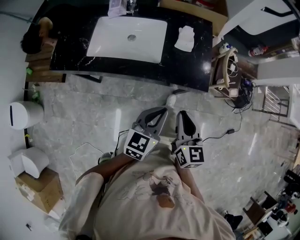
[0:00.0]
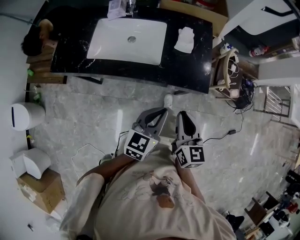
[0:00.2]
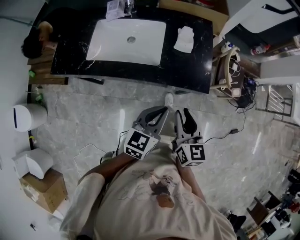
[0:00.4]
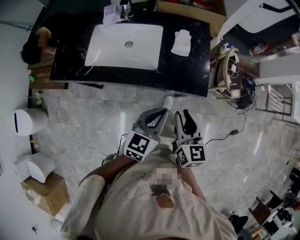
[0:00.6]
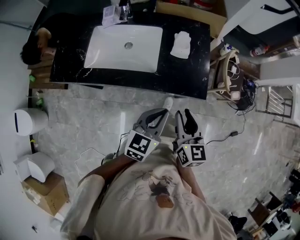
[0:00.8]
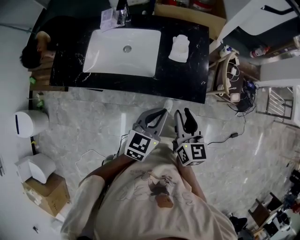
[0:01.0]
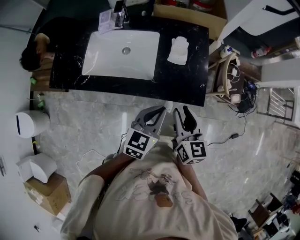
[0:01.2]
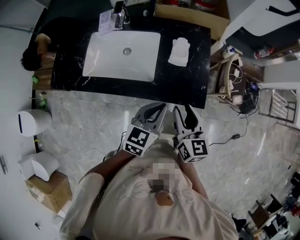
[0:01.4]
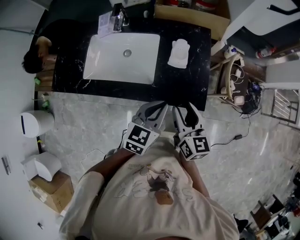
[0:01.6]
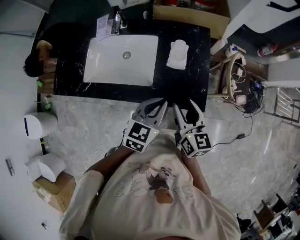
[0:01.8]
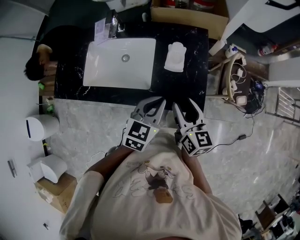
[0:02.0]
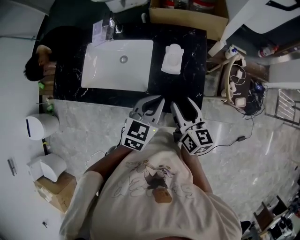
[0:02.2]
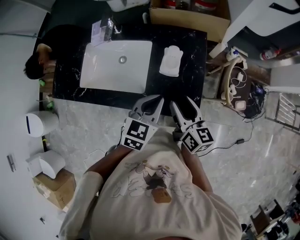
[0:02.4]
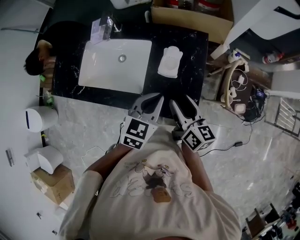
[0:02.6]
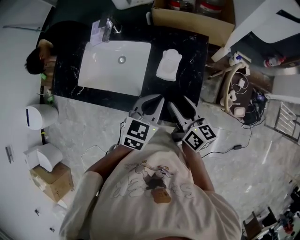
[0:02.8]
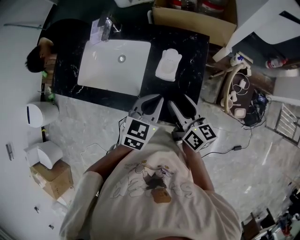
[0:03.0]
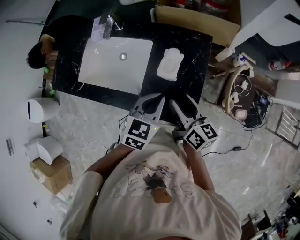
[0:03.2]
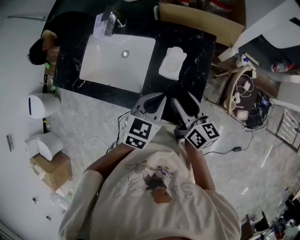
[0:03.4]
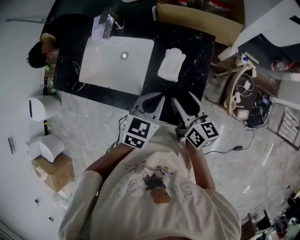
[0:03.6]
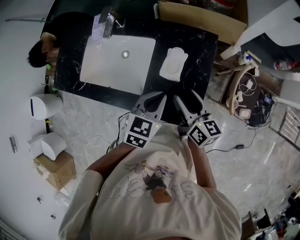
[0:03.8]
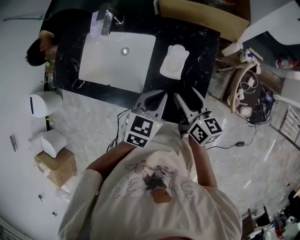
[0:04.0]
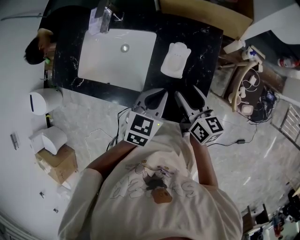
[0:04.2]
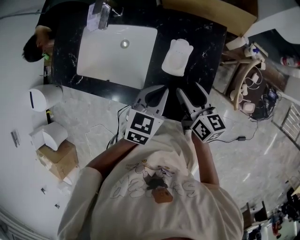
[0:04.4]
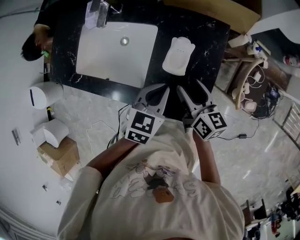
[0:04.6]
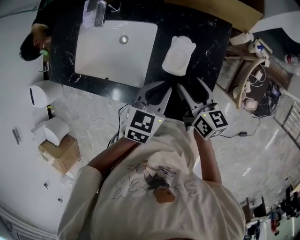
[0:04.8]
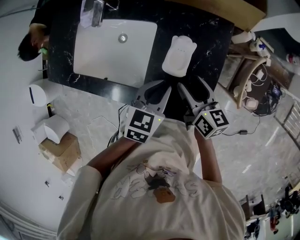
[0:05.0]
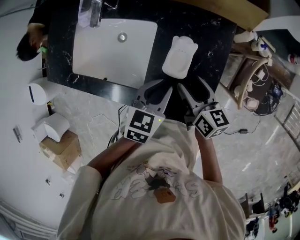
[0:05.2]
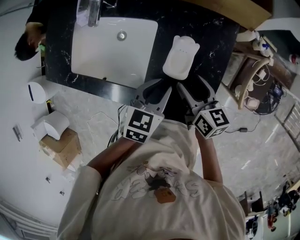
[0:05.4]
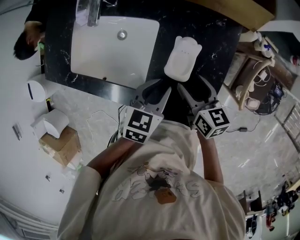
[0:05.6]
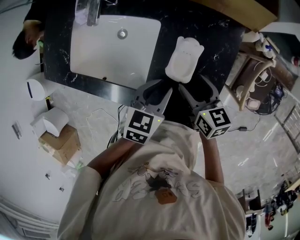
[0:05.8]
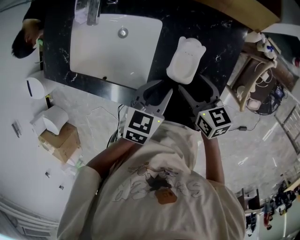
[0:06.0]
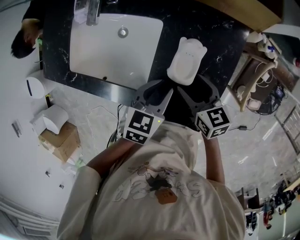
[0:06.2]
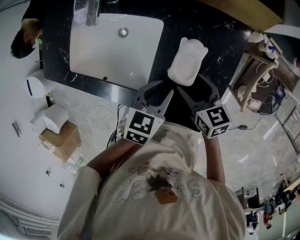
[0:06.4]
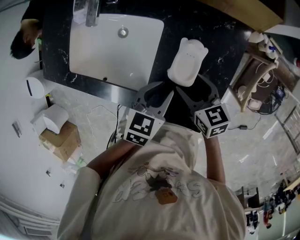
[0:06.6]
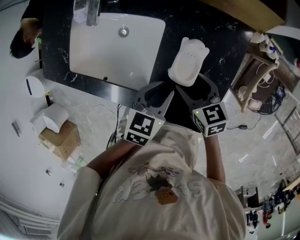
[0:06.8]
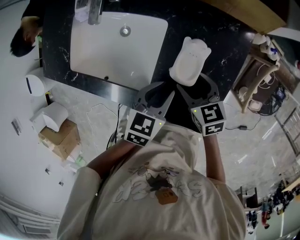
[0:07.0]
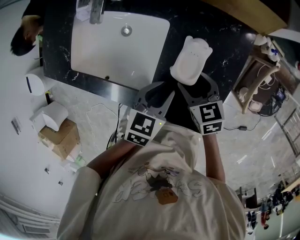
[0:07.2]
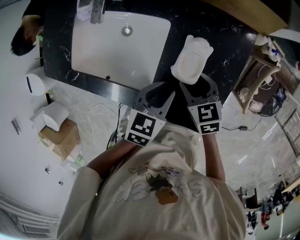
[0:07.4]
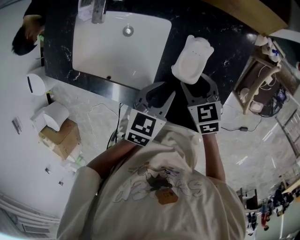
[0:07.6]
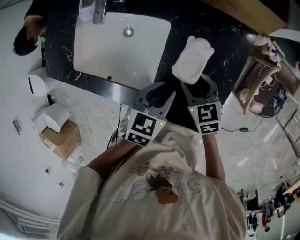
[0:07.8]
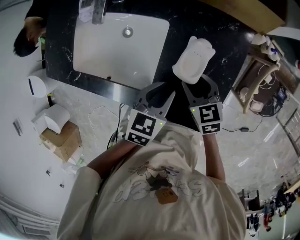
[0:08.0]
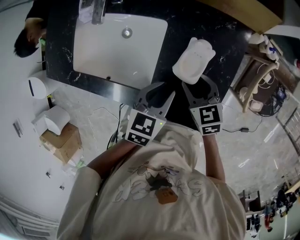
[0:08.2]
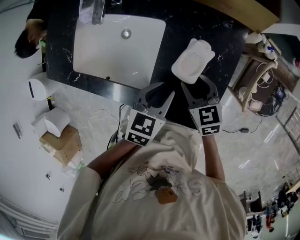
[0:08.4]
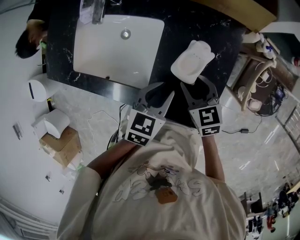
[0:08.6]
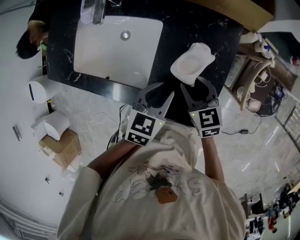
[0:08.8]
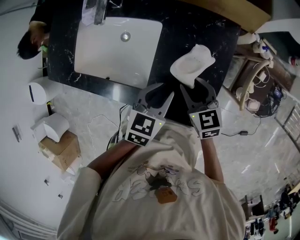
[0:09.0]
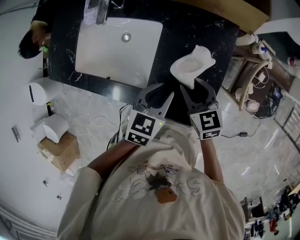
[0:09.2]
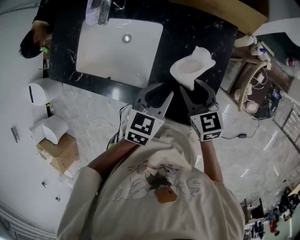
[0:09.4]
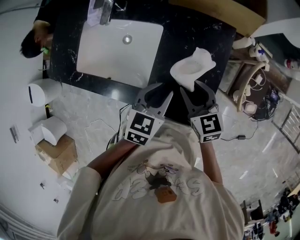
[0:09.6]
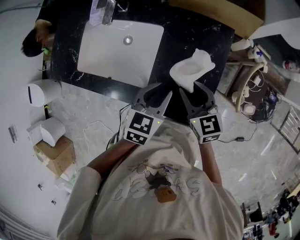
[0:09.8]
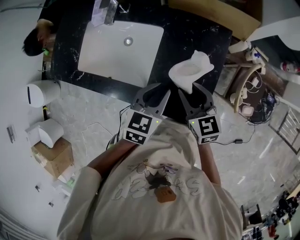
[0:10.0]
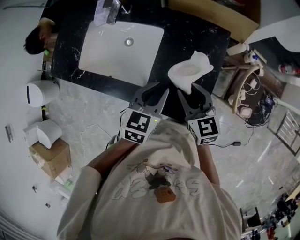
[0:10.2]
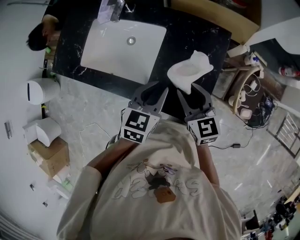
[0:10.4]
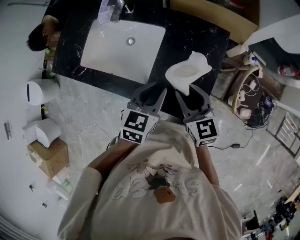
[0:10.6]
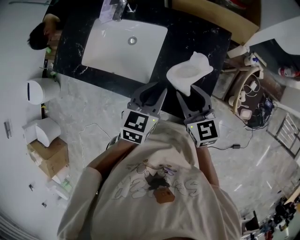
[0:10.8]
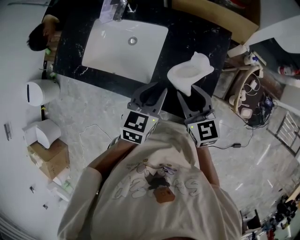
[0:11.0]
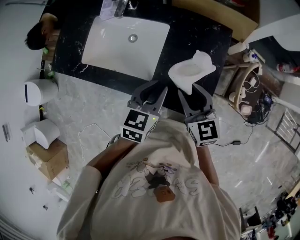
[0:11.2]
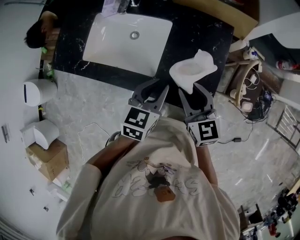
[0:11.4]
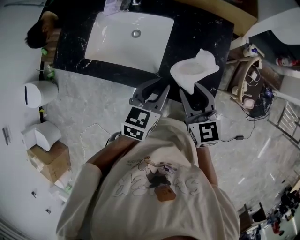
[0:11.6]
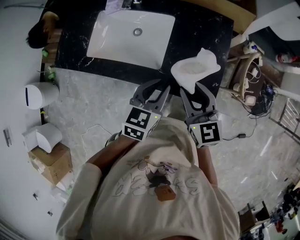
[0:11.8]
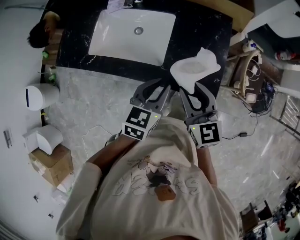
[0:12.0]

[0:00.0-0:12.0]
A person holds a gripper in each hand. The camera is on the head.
0:00.0 to 0:01.6: Both grippers move forward, approximately 15 cm. The right gripper opens its fingers.
0:01.6 to 0:03.0: The two grippers go roughly 15 cm forward and to the right. The right gripper changes its angle by roughly 30 degrees.
0:03.0 to 0:04.4: The left gripper changes place by about 5 cm; the right gripper is displaced forward and downward by about 10 cm.
0:04.4 to 0:06.0: The two grippers go some 5 cm downward. The right gripper changes its angle by roughly 20 degrees.
0:06.0 to 0:07.6: The right gripper swivels roughly 20 degrees.
0:07.6 to 0:09.0: The left gripper ends up about 5 cm from where it was, while the right gripper heads upward, covering some 5 cm.
0:09.0 to 0:10.4: The right gripper moves upward and backward, roughly 10 cm. The left gripper moves upward, some 5 cm.
0:10.4 to 0:12.0: The left gripper goes about 15 cm backward and to the left; the right gripper is displaced backward, to the left and upward by some 15 cm.

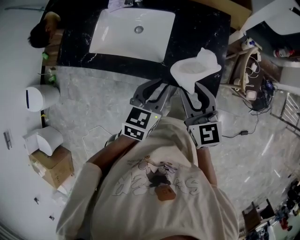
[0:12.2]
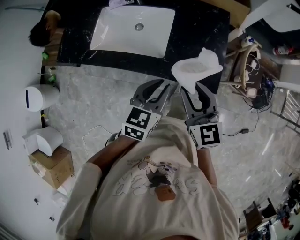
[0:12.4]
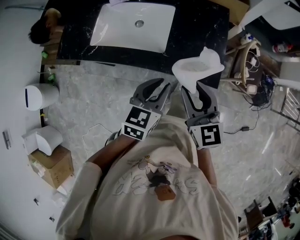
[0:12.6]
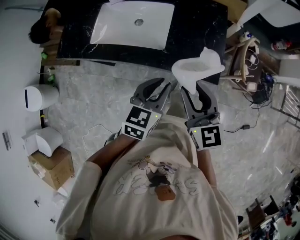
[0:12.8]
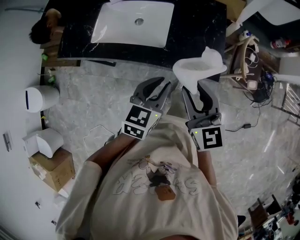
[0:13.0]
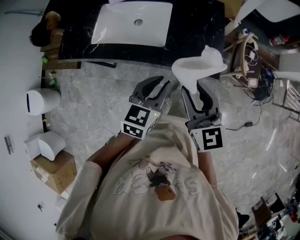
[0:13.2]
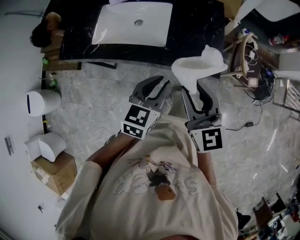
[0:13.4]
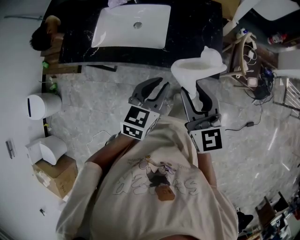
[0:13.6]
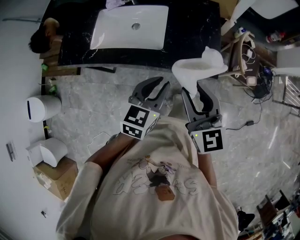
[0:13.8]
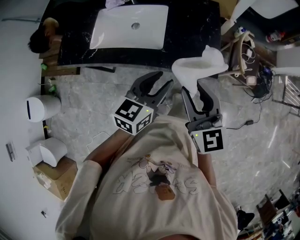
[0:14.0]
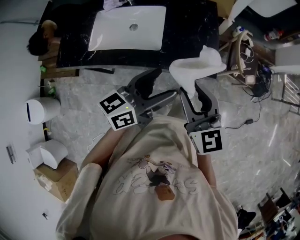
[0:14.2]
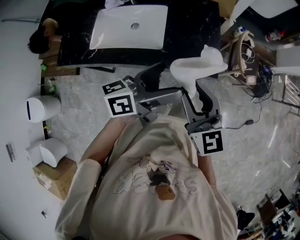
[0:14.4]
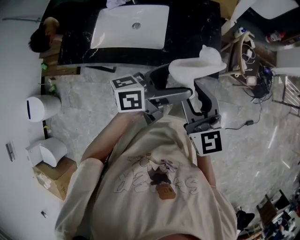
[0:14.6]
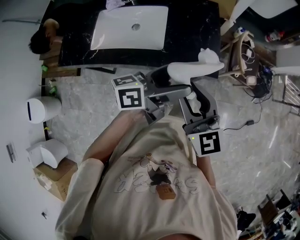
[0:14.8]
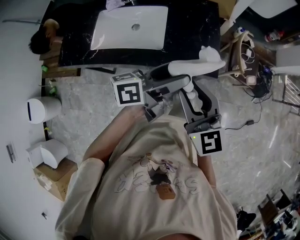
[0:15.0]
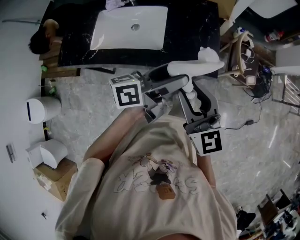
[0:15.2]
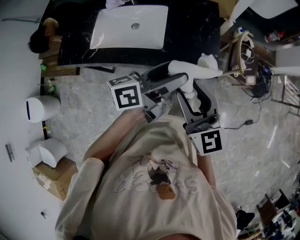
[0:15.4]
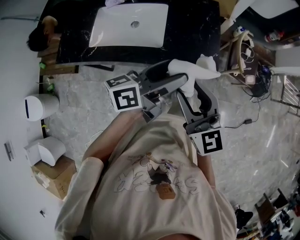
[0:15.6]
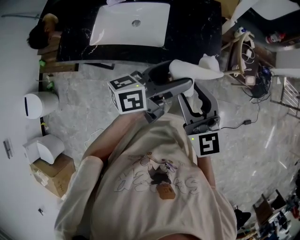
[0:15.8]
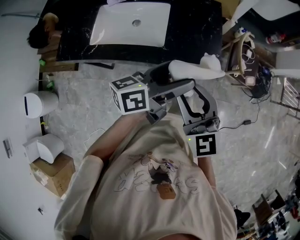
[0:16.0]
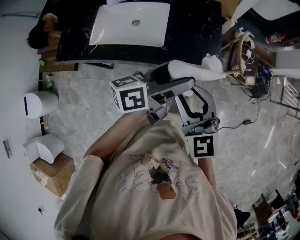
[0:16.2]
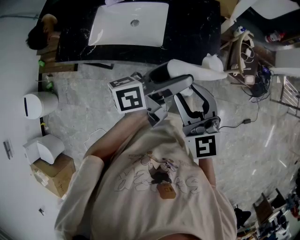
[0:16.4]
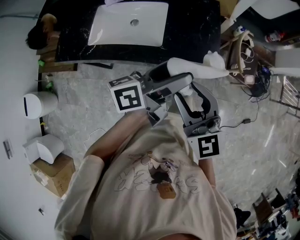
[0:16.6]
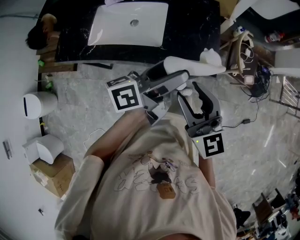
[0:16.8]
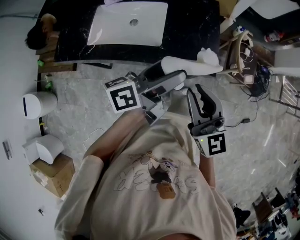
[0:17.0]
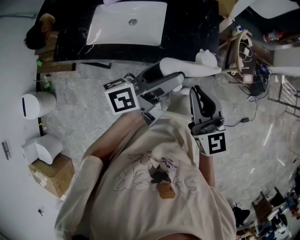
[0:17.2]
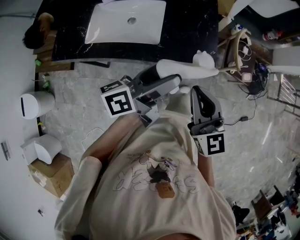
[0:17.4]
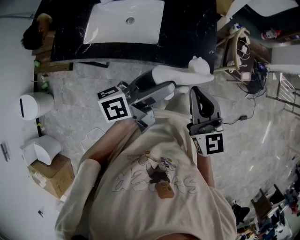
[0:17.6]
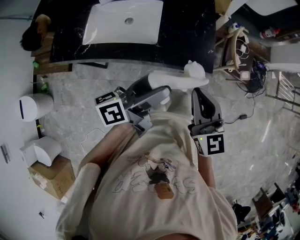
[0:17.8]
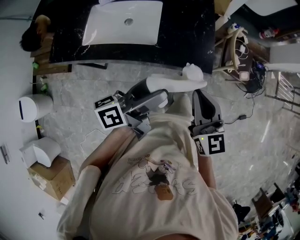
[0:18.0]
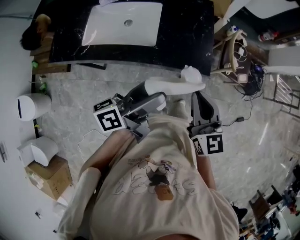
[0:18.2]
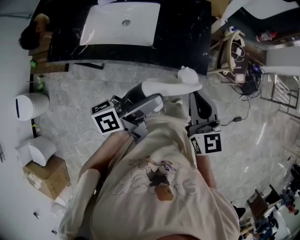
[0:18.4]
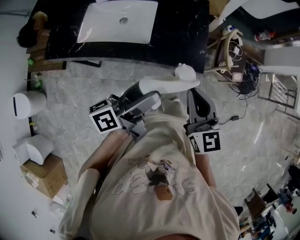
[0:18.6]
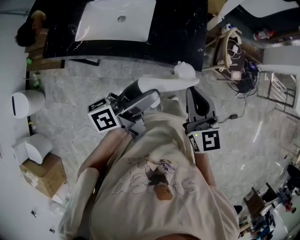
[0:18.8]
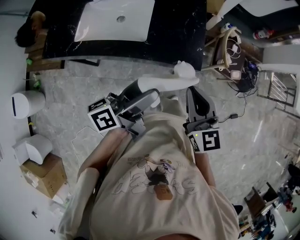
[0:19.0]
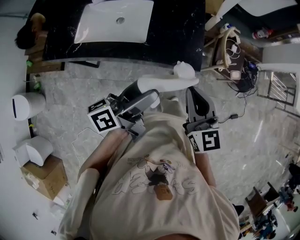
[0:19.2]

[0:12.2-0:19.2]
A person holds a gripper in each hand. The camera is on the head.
0:12.2 to 0:13.6: Both grippers travel together backward, roughly 10 cm.
0:13.6 to 0:15.0: The left gripper is displaced upward by about 5 cm, rotates roughly 60 degrees, and opens up.
0:15.0 to 0:16.4: The grippers make only small movements.
0:16.4 to 0:17.8: The left gripper heads backward, covering about 5 cm. Meanwhile the right gripper travels to the right by approximately 5 cm, and closes.
0:17.8 to 0:19.2: There are only small adjustments of the grippers.

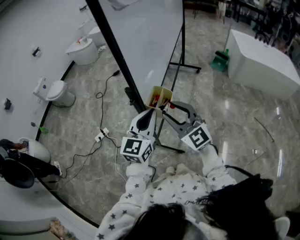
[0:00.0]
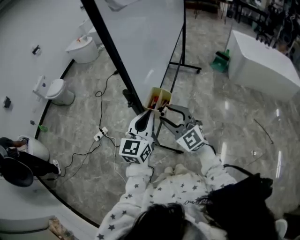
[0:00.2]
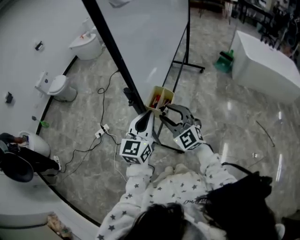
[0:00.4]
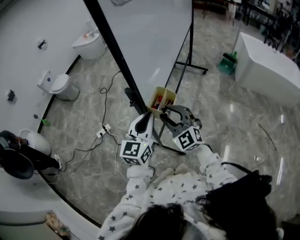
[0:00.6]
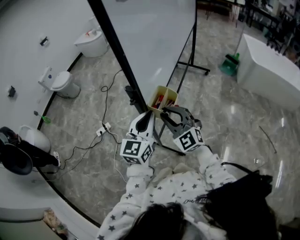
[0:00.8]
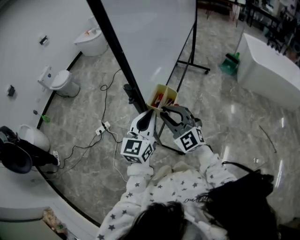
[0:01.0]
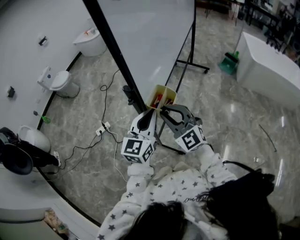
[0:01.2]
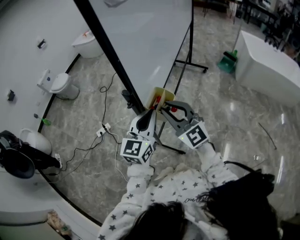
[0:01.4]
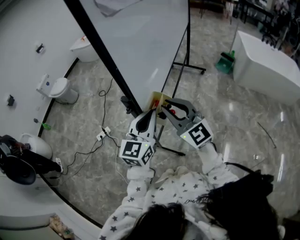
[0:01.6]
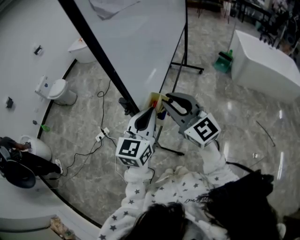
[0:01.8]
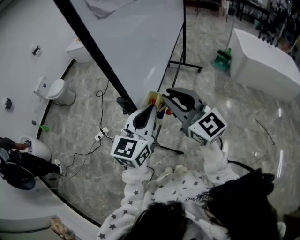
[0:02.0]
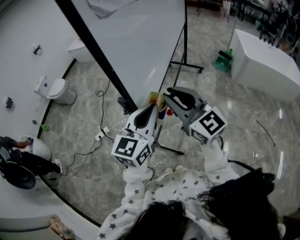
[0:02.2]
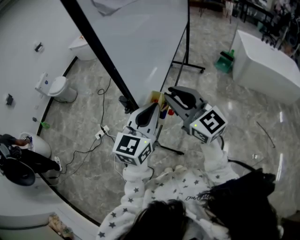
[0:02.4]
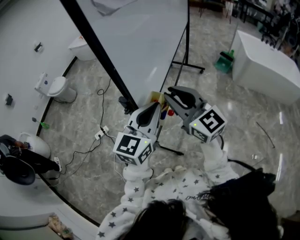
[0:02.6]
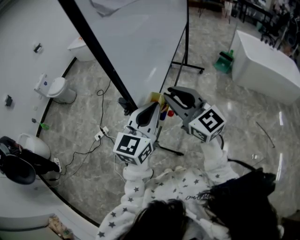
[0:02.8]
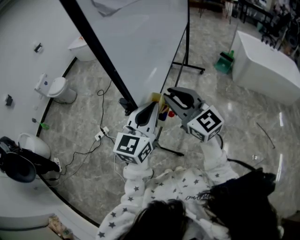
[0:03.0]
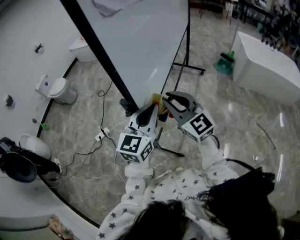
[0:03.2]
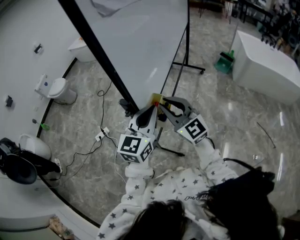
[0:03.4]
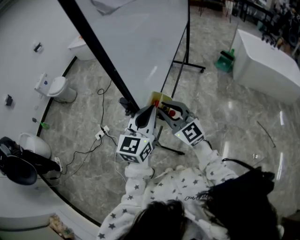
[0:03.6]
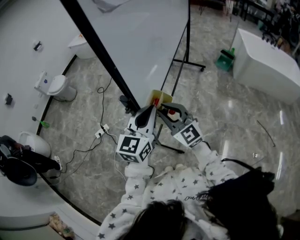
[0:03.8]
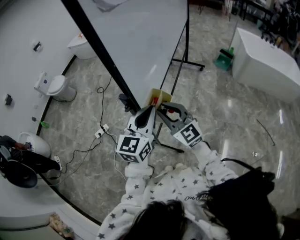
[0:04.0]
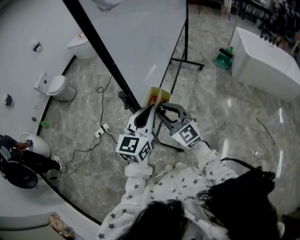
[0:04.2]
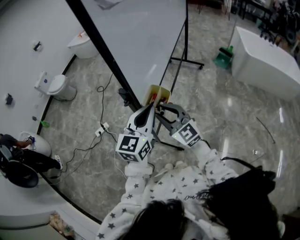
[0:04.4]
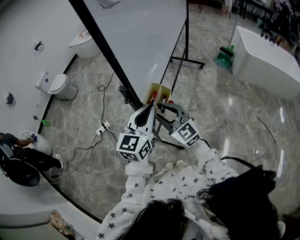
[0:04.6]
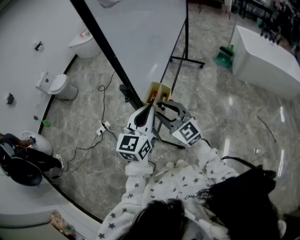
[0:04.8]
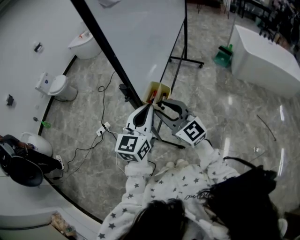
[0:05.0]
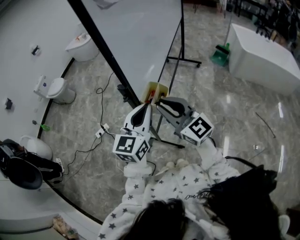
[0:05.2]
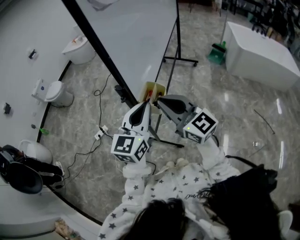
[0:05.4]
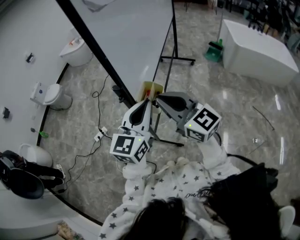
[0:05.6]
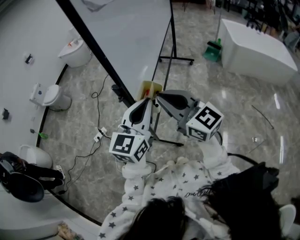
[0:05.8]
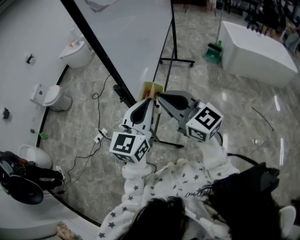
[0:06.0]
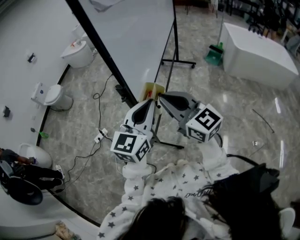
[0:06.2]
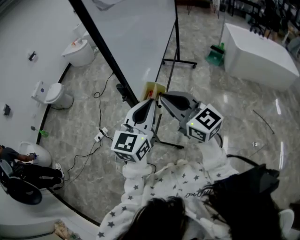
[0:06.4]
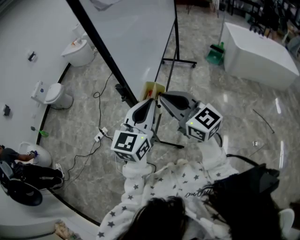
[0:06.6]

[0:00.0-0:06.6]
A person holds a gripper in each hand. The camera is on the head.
0:00.0 to 0:01.6: The right gripper changes place by approximately 5 cm.
0:03.2 to 0:05.0: The right gripper travels backward by roughly 5 cm.
0:05.0 to 0:06.6: The left gripper moves approximately 5 cm; the right gripper travels upward by approximately 5 cm, and closes.
